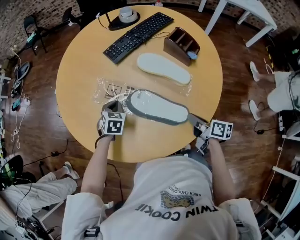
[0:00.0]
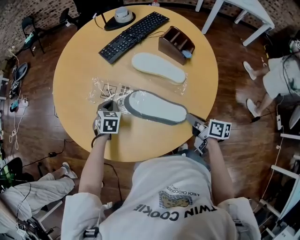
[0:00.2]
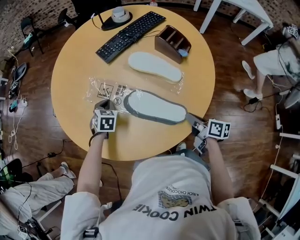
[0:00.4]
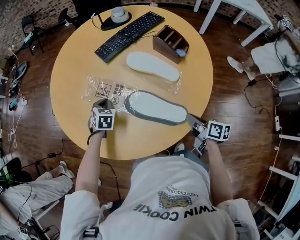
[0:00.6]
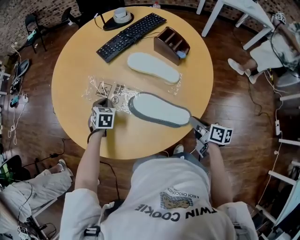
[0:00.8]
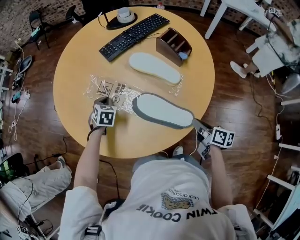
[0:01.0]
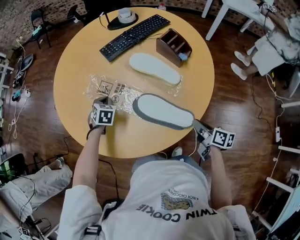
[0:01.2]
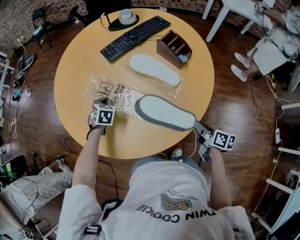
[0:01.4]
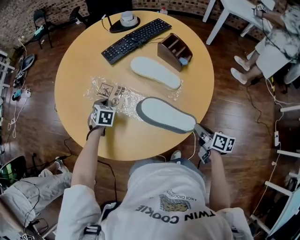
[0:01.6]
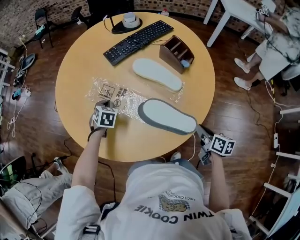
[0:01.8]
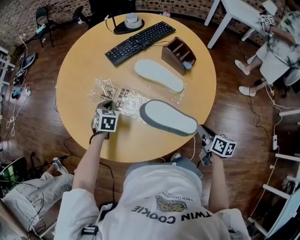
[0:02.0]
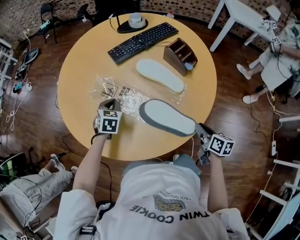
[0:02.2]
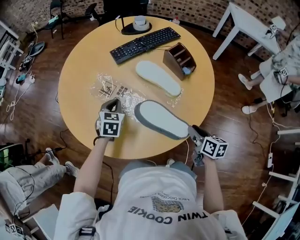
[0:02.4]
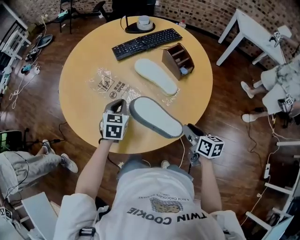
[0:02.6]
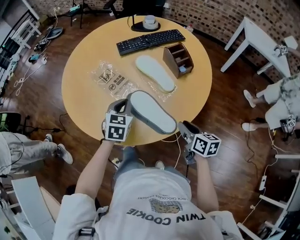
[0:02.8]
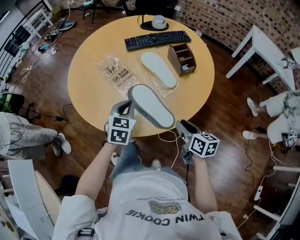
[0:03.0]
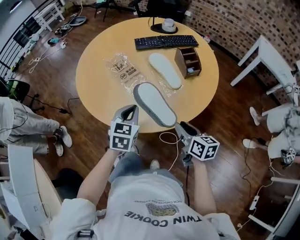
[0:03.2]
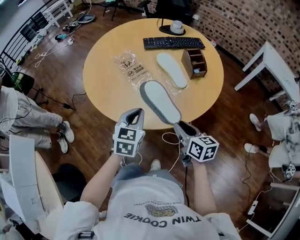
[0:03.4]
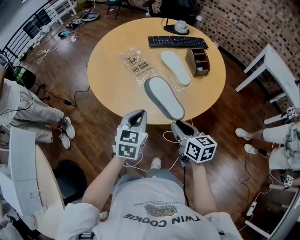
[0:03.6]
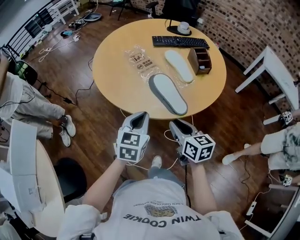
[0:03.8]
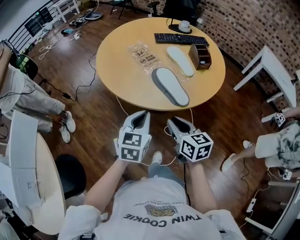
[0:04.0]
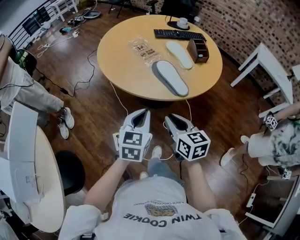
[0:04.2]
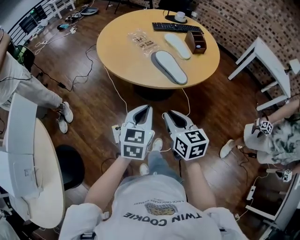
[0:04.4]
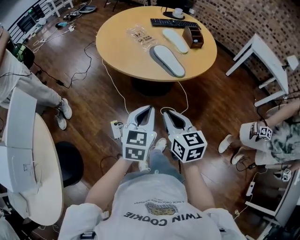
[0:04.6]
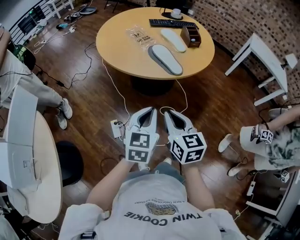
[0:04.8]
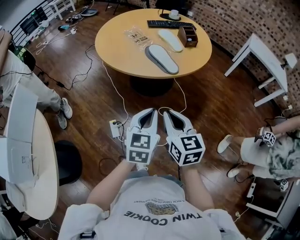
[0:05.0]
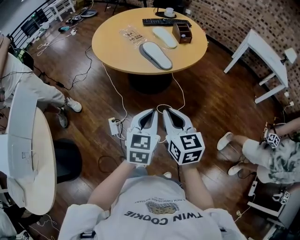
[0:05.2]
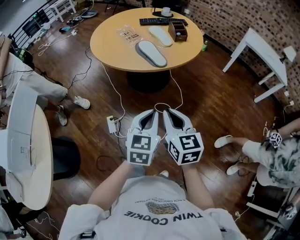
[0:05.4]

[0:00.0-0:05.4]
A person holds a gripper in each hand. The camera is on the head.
0:00.0 to 0:01.4: The right gripper travels to the right and backward by approximately 10 cm.
0:01.4 to 0:02.8: The right gripper shifts by approximately 5 cm, and swivels roughly 30 degrees, while the left gripper is displaced backward, to the right and upward by about 20 cm, and swivels roughly 30 degrees.
0:02.8 to 0:04.0: The left gripper is displaced backward by about 30 cm. Meanwhile the right gripper heads to the left, backward and upward, covering about 25 cm, and changes its angle by roughly 30 degrees.
0:04.0 to 0:05.4: The left gripper moves backward and to the right, about 30 cm, while the right gripper travels backward by some 25 cm.

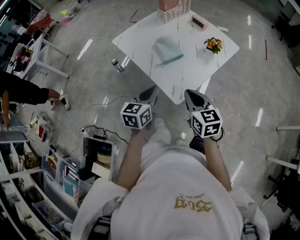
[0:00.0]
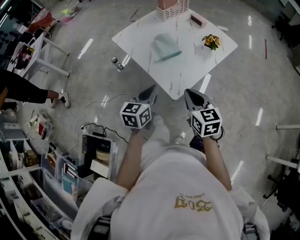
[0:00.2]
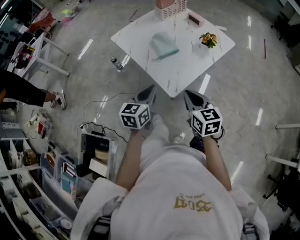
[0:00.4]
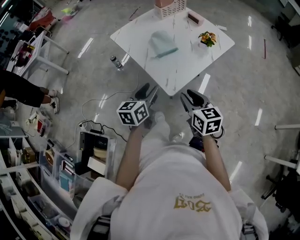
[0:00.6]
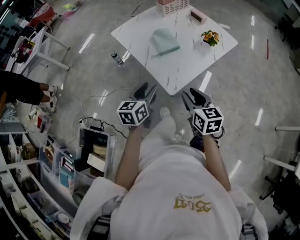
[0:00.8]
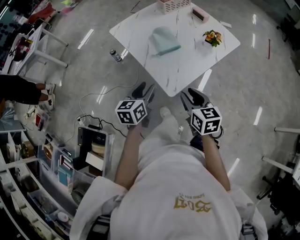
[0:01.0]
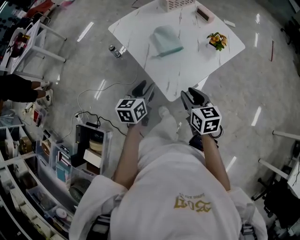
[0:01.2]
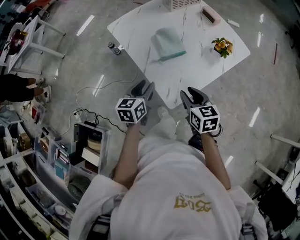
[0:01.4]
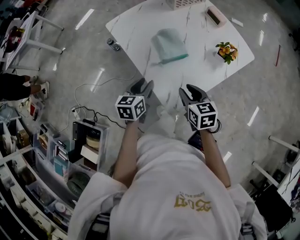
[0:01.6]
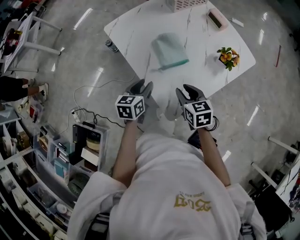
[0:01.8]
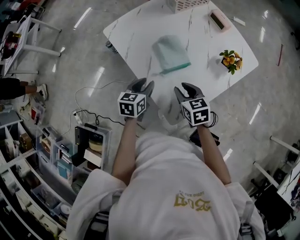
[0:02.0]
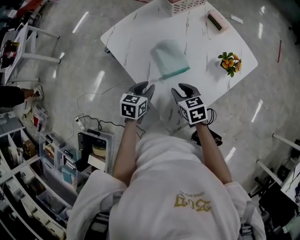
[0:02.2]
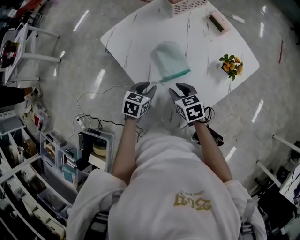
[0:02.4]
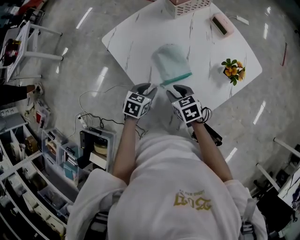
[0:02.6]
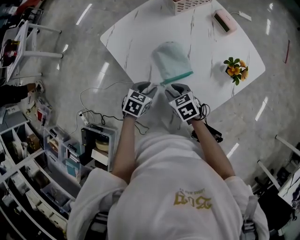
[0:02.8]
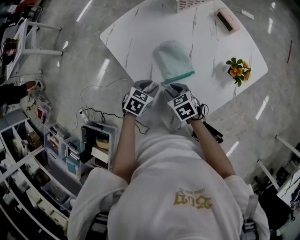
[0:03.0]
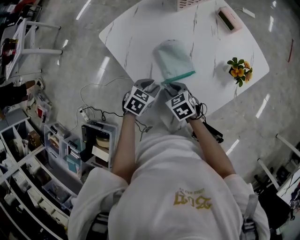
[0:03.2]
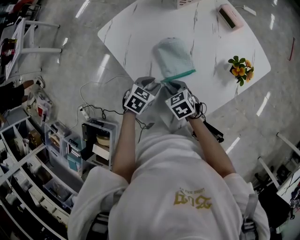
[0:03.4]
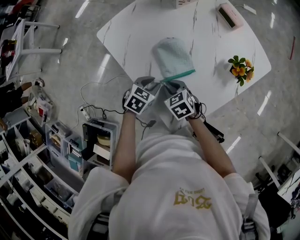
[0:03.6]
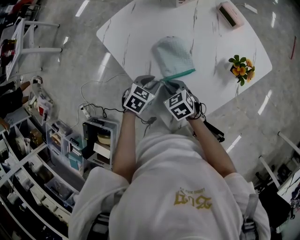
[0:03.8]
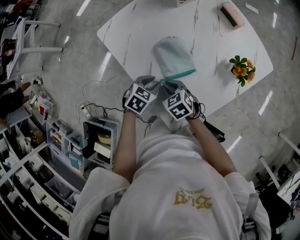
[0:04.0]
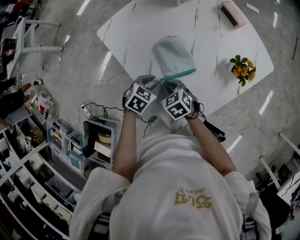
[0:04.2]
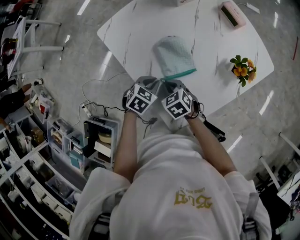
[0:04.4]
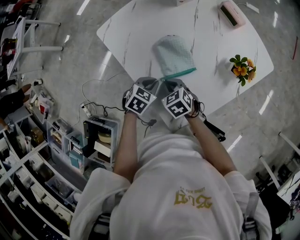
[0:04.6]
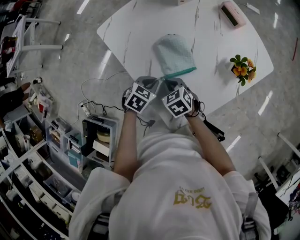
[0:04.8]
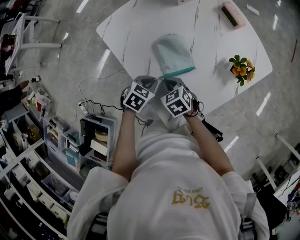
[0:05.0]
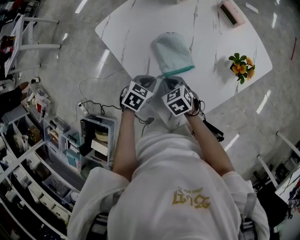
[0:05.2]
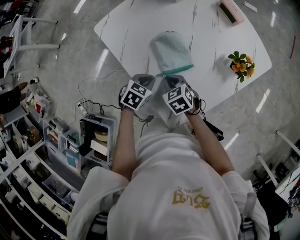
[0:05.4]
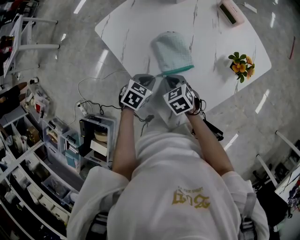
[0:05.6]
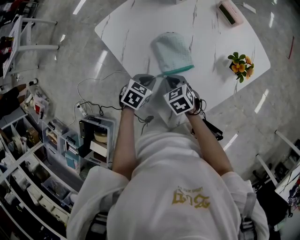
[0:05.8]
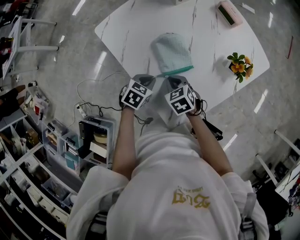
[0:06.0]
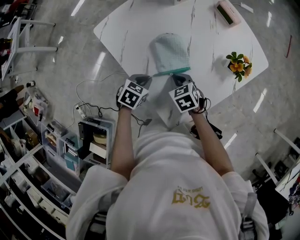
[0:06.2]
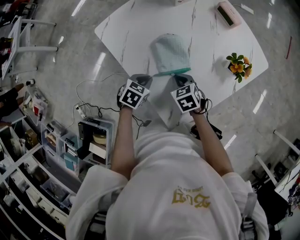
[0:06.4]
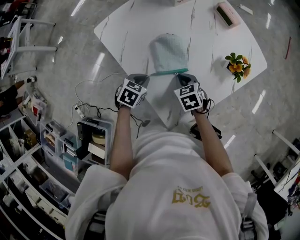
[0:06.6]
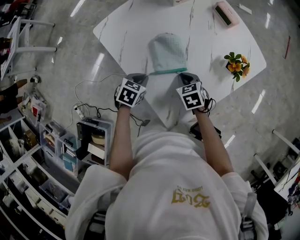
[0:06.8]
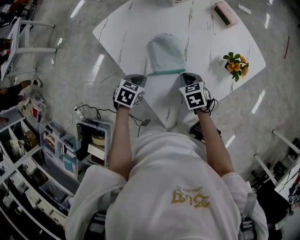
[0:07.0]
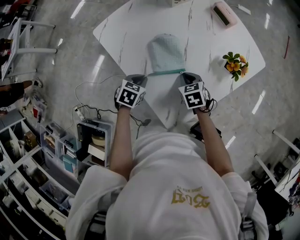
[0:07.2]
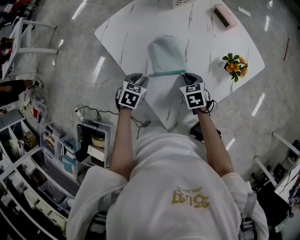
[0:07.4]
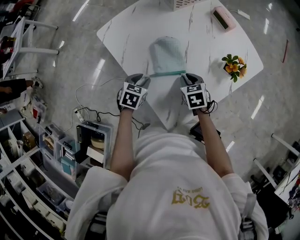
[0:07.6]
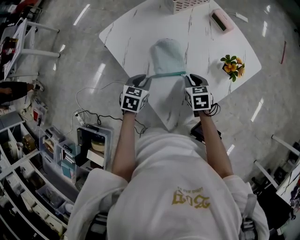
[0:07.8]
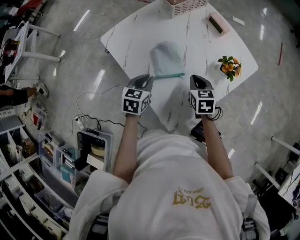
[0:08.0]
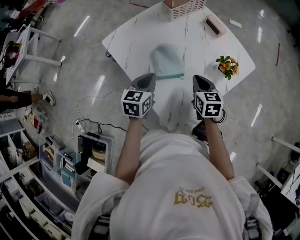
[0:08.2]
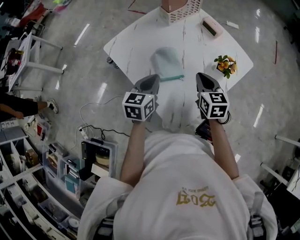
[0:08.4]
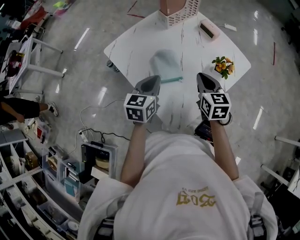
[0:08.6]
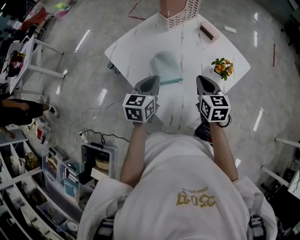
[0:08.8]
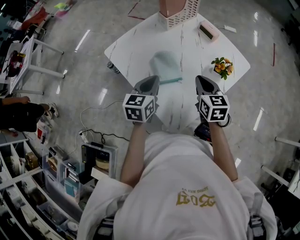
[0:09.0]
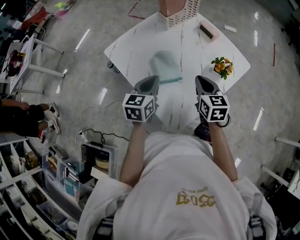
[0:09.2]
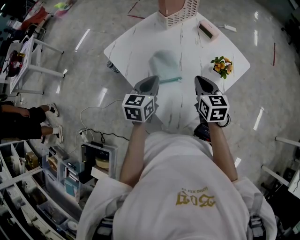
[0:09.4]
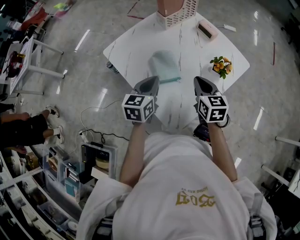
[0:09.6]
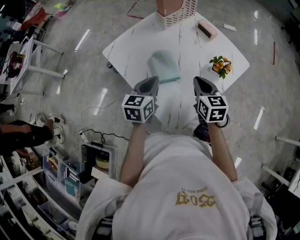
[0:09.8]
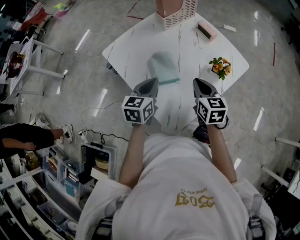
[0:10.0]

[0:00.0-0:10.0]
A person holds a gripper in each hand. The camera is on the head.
0:00.0 to 0:01.4: The grippers both shift downward and forward by about 10 cm. The right gripper opens, while the left gripper opens.
0:01.4 to 0:02.8: The left gripper moves forward and downward, about 15 cm, and rotates approximately 40 degrees; the right gripper goes roughly 20 cm forward, downward and to the left, and rotates approximately 20 degrees.
0:02.8 to 0:04.2: The right gripper closes up.
0:04.2 to 0:05.8: The left gripper closes its fingers.
0:05.8 to 0:07.2: The right gripper heads to the right, covering approximately 10 cm.
0:07.2 to 0:08.6: Both grippers move upward, approximately 20 cm. The left gripper tips its fingers upward by some 40 degrees, and opens, then closes again. Meanwhile the right gripper changes its angle by approximately 30 degrees.
0:08.6 to 0:10.0: The grippers stay close to where they were, moving slightly.

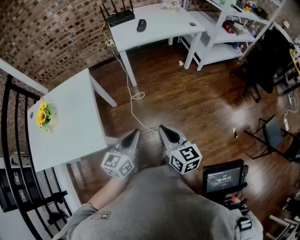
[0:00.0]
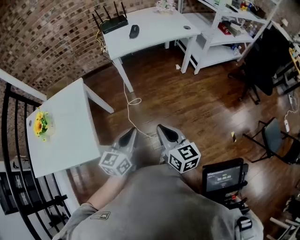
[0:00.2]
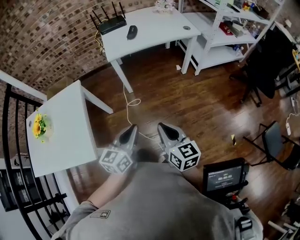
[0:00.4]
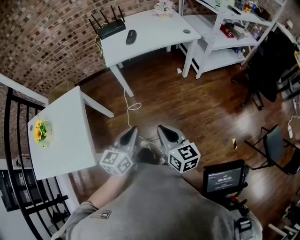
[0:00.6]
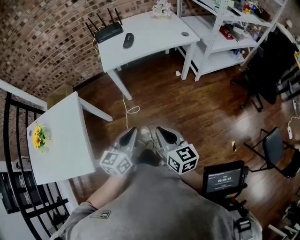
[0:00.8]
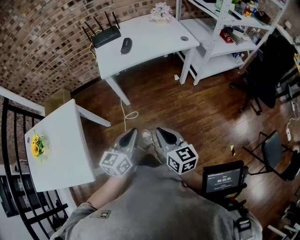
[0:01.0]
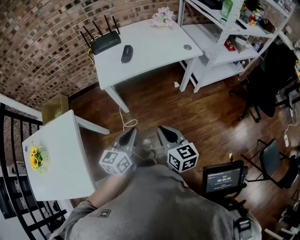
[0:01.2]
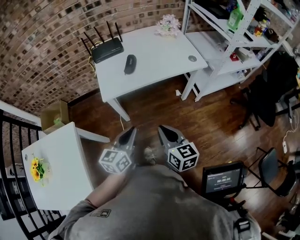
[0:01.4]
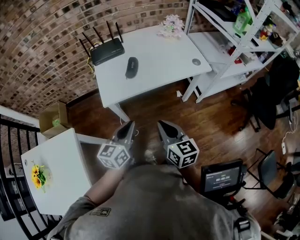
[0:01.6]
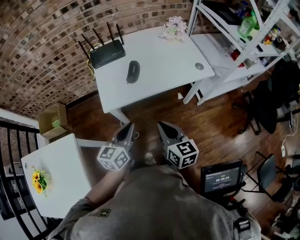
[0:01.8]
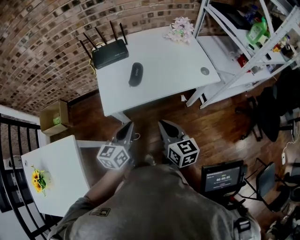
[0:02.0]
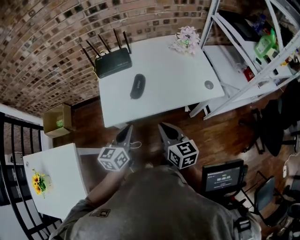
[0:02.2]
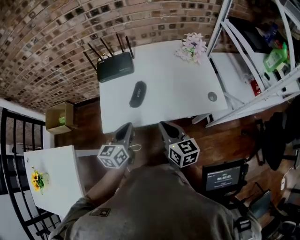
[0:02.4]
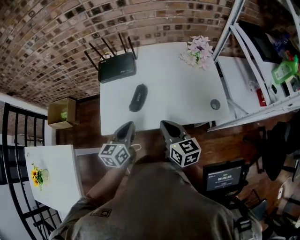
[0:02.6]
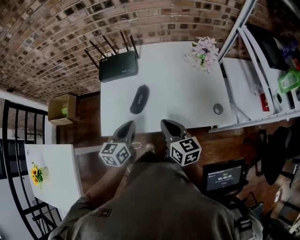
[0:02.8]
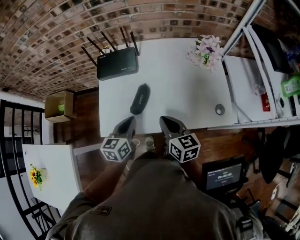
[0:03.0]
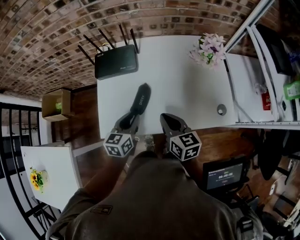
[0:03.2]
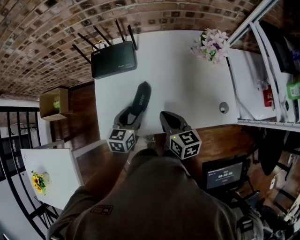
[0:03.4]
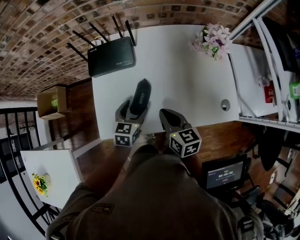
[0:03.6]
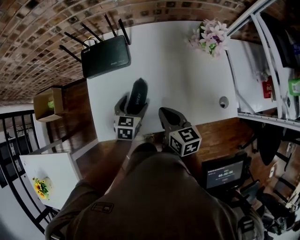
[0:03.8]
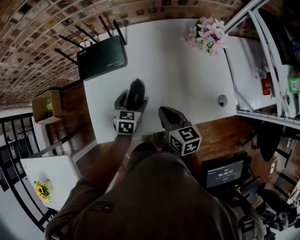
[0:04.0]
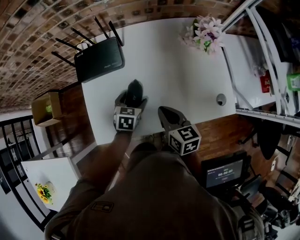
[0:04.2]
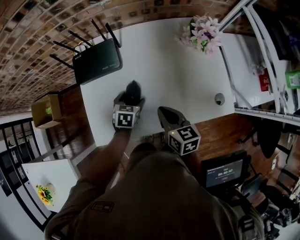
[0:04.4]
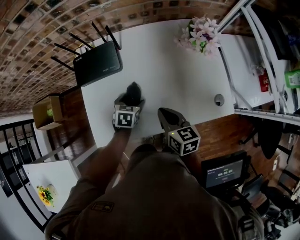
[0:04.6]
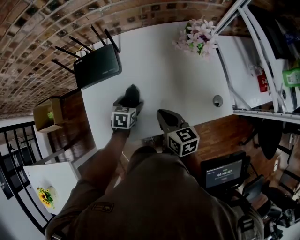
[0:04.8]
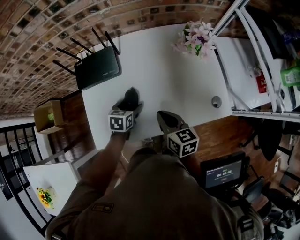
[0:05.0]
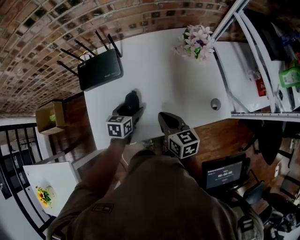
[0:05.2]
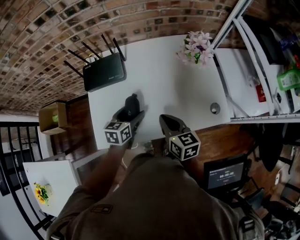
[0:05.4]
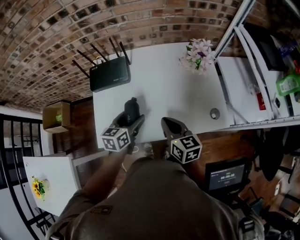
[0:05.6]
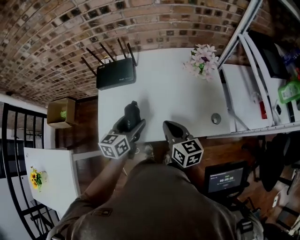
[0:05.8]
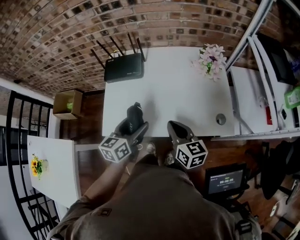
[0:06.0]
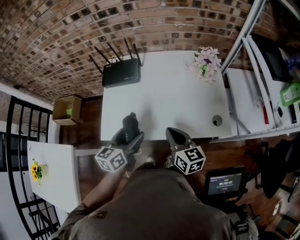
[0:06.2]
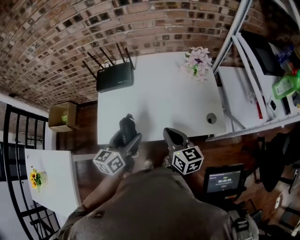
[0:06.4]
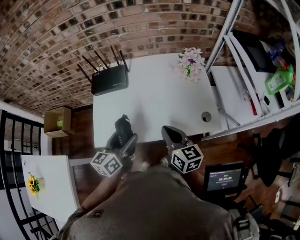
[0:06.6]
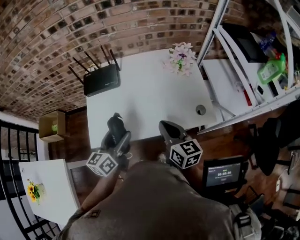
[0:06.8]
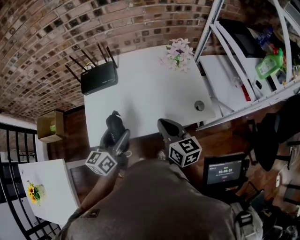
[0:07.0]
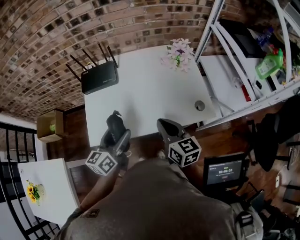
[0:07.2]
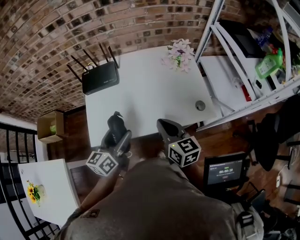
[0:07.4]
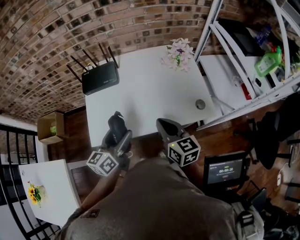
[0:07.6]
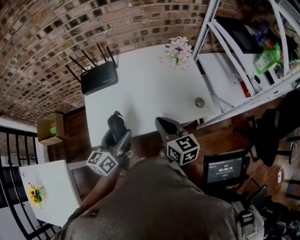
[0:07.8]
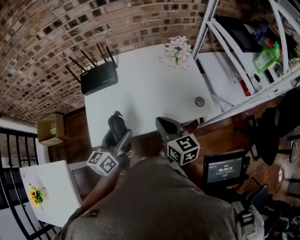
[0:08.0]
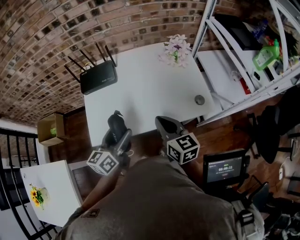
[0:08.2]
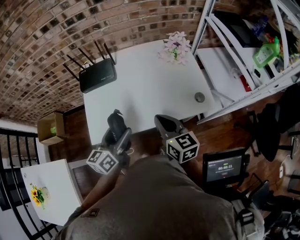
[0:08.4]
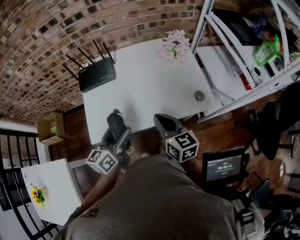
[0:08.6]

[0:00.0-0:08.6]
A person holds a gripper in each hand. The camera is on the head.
0:00.0 to 0:01.4: Both grippers move forward, roughly 35 cm.
0:01.4 to 0:02.8: The two grippers go about 35 cm forward. The left gripper rotates about 20 degrees.
0:02.8 to 0:04.4: The left gripper moves downward and forward, about 20 cm, tilts its fingers approximately 30 degrees downward, and opens its fingers. Meanwhile the right gripper heads forward and downward, covering some 10 cm.
0:04.4 to 0:05.8: The right gripper is displaced upward by some 5 cm; the left gripper is displaced upward and backward by approximately 20 cm, and tilts its fingers about 30 degrees upward.
0:05.8 to 0:07.2: The right gripper ends up about 5 cm from where it was, while the left gripper shifts approximately 10 cm backward and upward.
0:07.2 to 0:08.6: The grippers move only a little.
